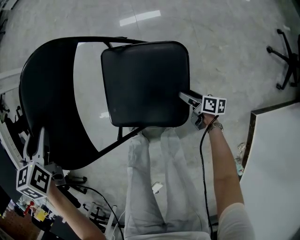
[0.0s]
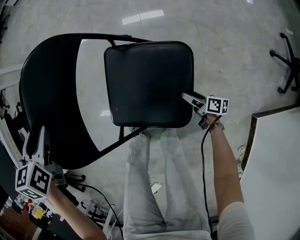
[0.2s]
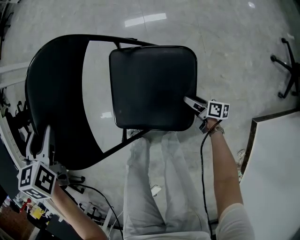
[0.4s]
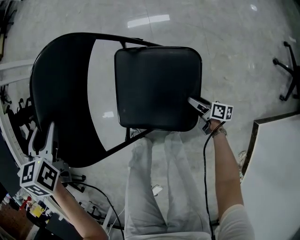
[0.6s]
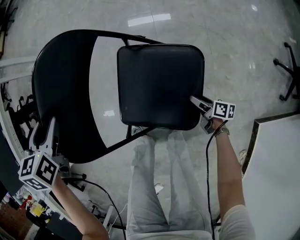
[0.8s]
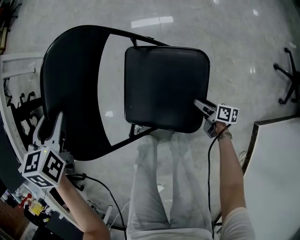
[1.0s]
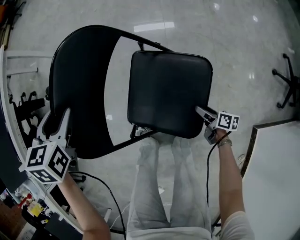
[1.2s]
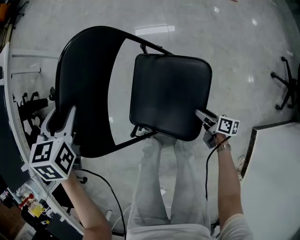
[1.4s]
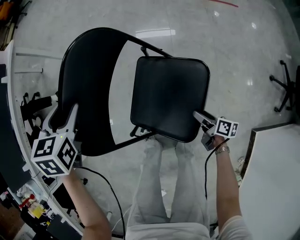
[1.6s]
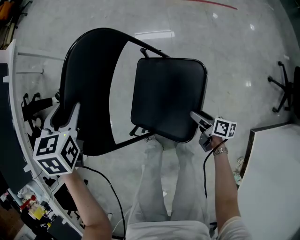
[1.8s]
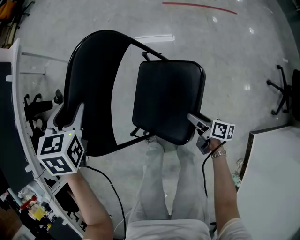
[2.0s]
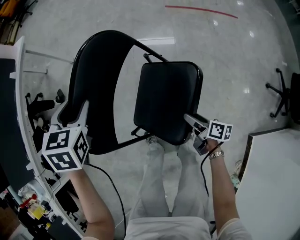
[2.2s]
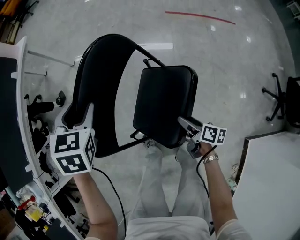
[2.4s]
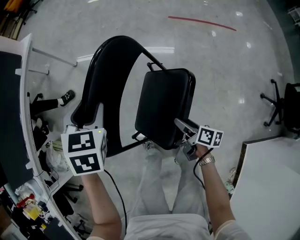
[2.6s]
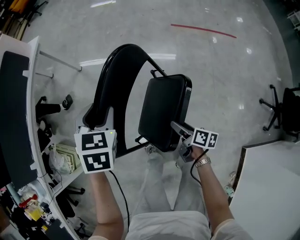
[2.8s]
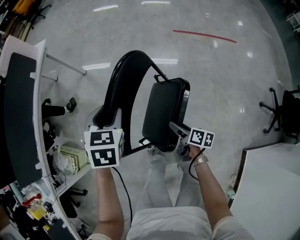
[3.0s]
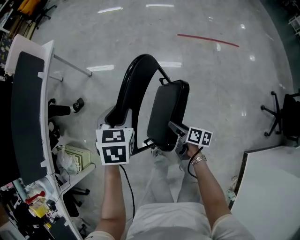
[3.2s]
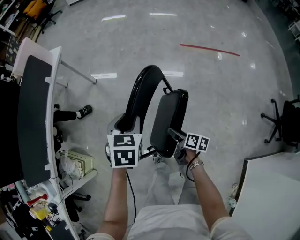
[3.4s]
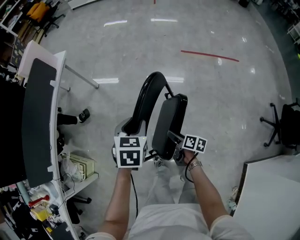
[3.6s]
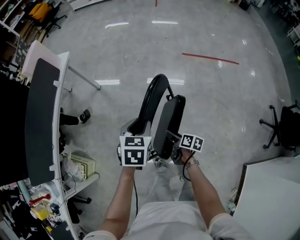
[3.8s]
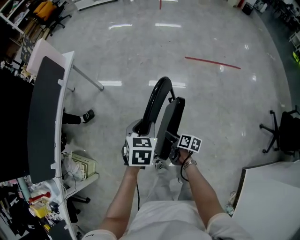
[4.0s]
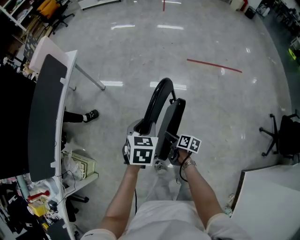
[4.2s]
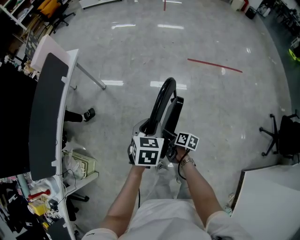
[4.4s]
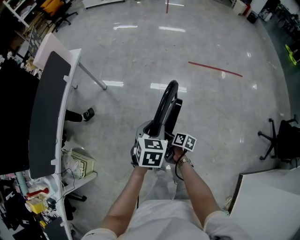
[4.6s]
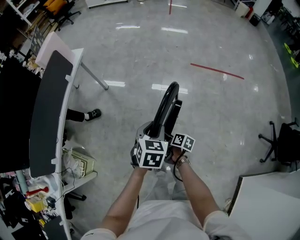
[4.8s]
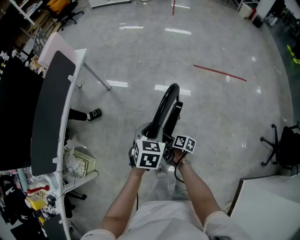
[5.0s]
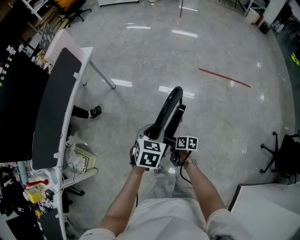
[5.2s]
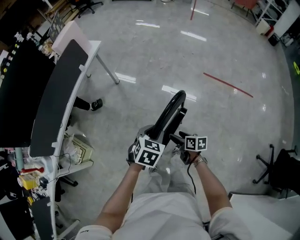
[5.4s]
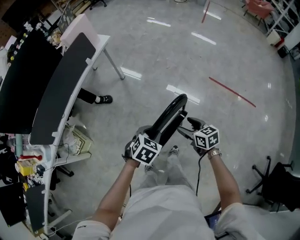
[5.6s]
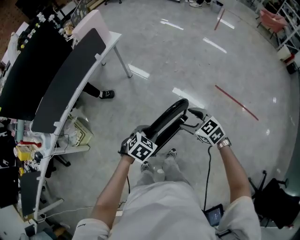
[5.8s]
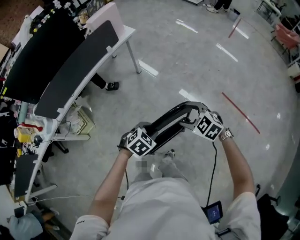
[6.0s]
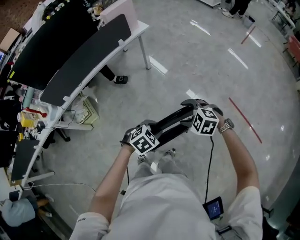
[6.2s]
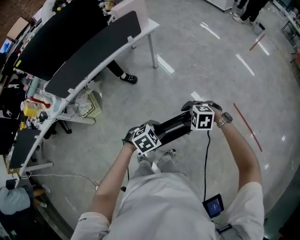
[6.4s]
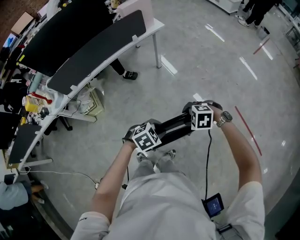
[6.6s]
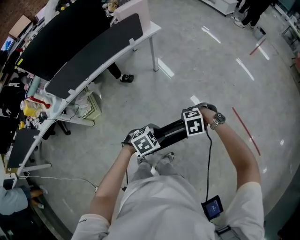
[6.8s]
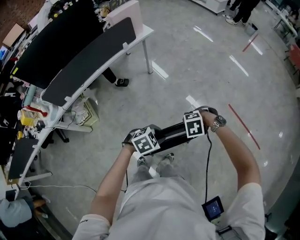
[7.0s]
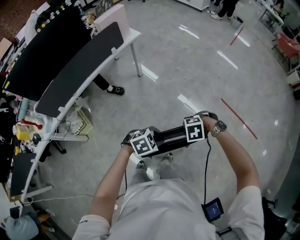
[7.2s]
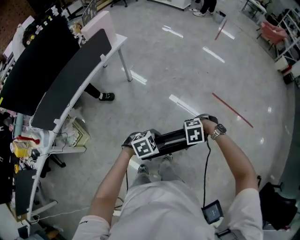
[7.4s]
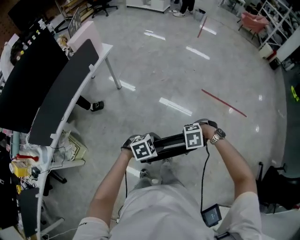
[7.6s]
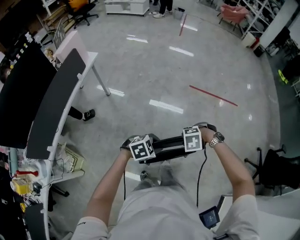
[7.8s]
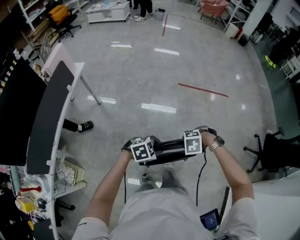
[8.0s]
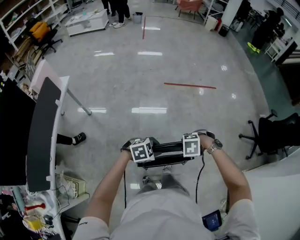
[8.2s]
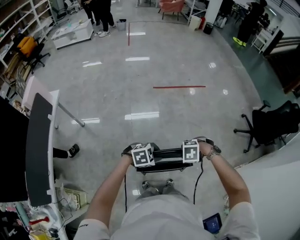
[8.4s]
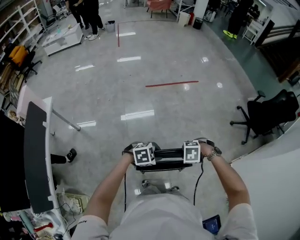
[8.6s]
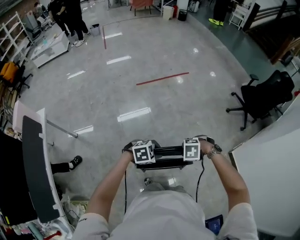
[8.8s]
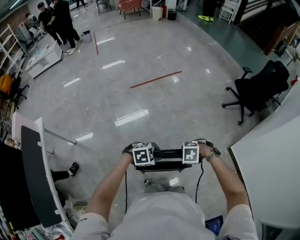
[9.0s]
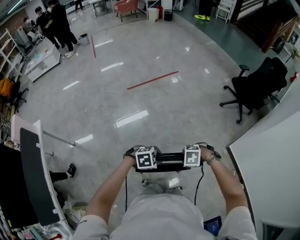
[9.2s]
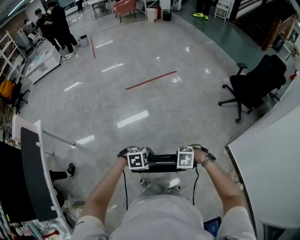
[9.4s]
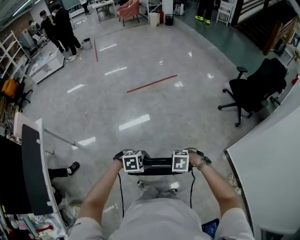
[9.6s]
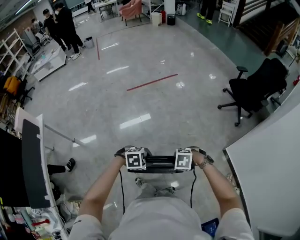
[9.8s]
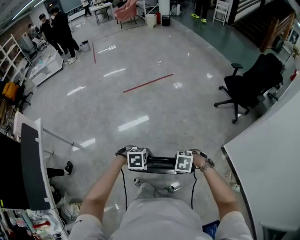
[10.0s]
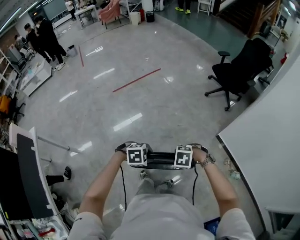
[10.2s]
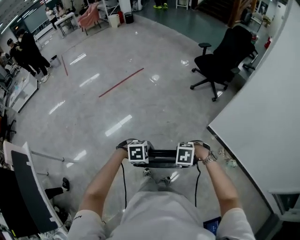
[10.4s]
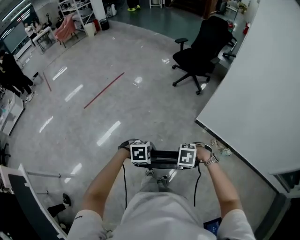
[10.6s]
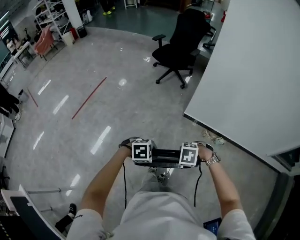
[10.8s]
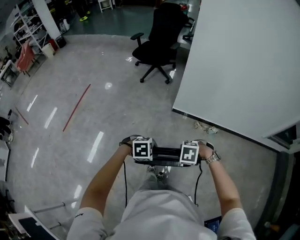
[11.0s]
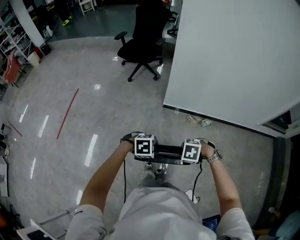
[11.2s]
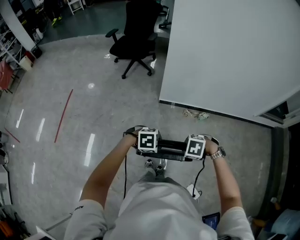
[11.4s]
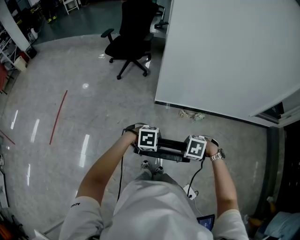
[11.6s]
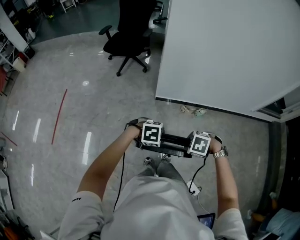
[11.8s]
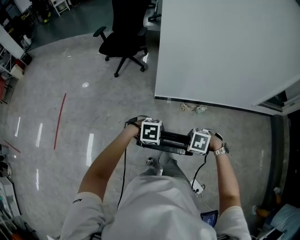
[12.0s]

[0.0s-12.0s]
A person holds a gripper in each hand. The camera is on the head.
0.0s to 1.6s: The right gripper travels upward, to the left and forward by approximately 20 cm, while the left gripper travels to the left, forward and upward by roughly 15 cm.
1.6s to 3.0s: The left gripper is displaced upward by some 10 cm; the right gripper heads to the left, upward and forward, covering about 25 cm.
3.0s to 4.4s: The left gripper moves roughly 5 cm. The right gripper moves to the left and forward, roughly 15 cm.
4.4s to 6.0s: The right gripper heads upward and forward, covering about 30 cm, and rotates around the line of its fingers by some 120 degrees, counterclockwise from behind.
6.0s to 7.6s: The left gripper moves roughly 10 cm, and swivels some 40 degrees. The right gripper changes place by about 15 cm, tips its fingers downward by about 30 degrees, and closes.
7.6s to 9.0s: The left gripper shifts by about 25 cm, and swivels some 60 degrees. The right gripper ends up about 35 cm from where it was, and rolls clockwise, seen from behind, by some 60 degrees.
9.0s to 10.4s: The right gripper changes place by about 30 cm, and swivels roughly 20 degrees, while the left gripper shifts by about 25 cm, and turns by about 20 degrees.
10.4s to 12.0s: The left gripper shifts by some 30 cm, and twists some 50 degrees clockwise, seen from behind, while the right gripper ends up roughly 25 cm from where it was, and twists some 50 degrees clockwise, seen from behind.

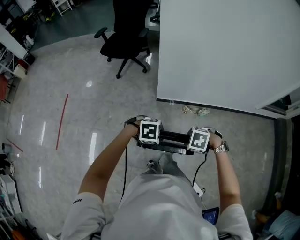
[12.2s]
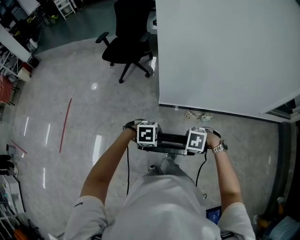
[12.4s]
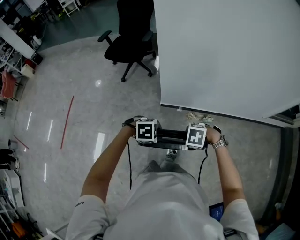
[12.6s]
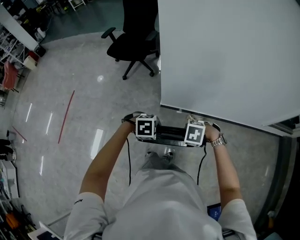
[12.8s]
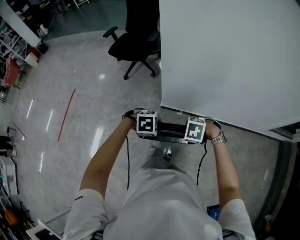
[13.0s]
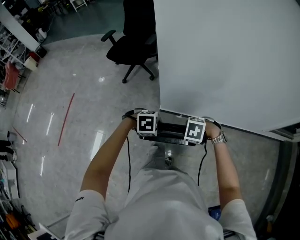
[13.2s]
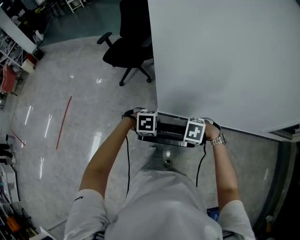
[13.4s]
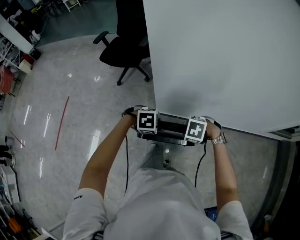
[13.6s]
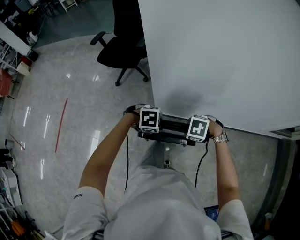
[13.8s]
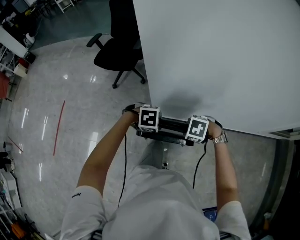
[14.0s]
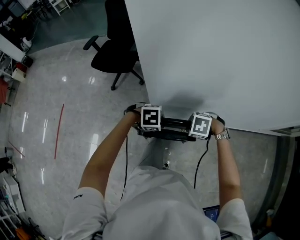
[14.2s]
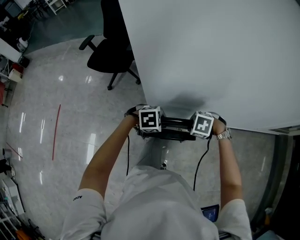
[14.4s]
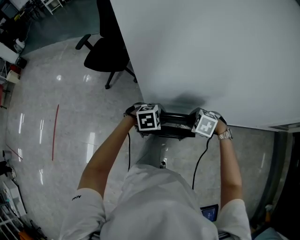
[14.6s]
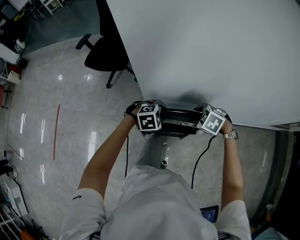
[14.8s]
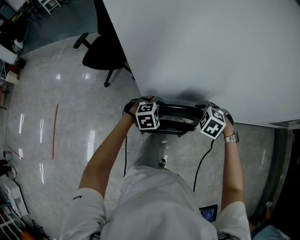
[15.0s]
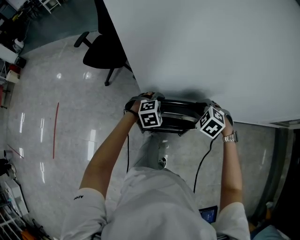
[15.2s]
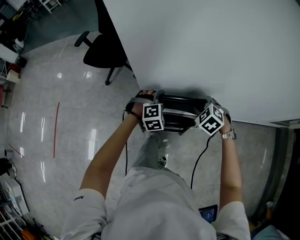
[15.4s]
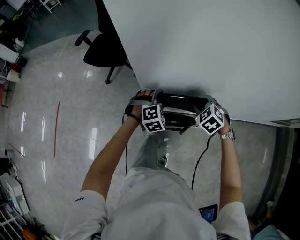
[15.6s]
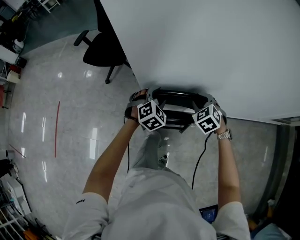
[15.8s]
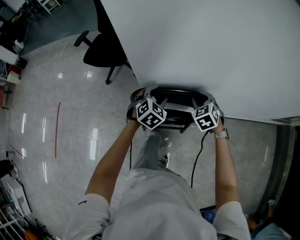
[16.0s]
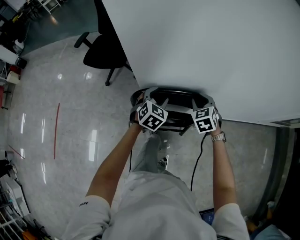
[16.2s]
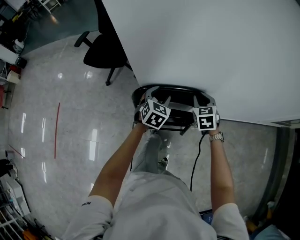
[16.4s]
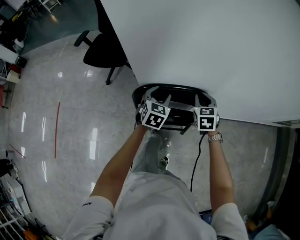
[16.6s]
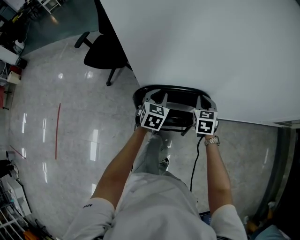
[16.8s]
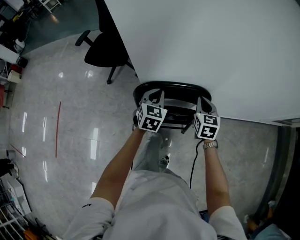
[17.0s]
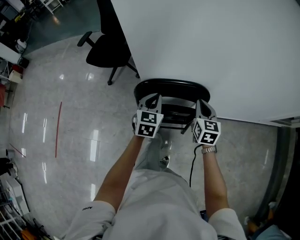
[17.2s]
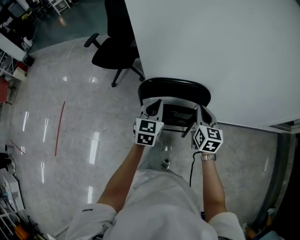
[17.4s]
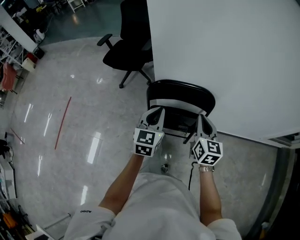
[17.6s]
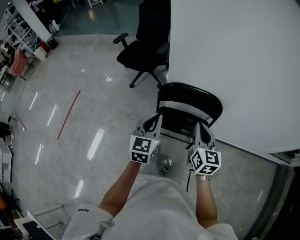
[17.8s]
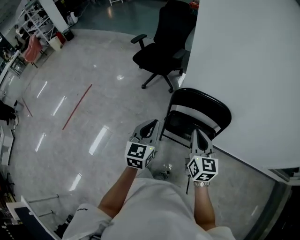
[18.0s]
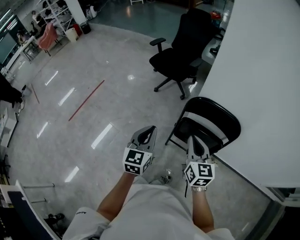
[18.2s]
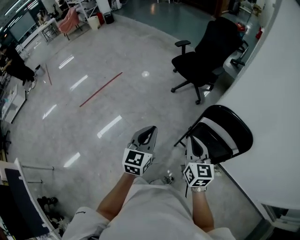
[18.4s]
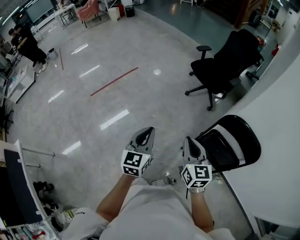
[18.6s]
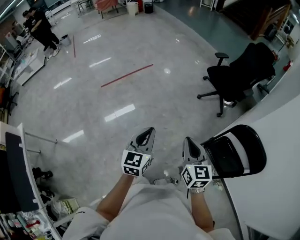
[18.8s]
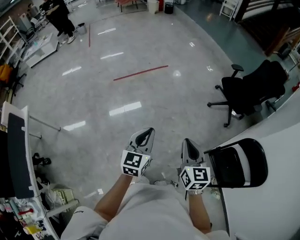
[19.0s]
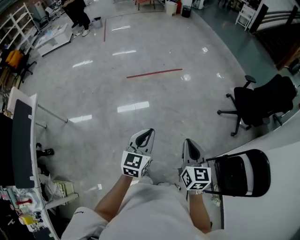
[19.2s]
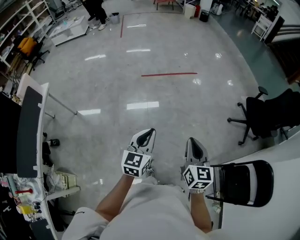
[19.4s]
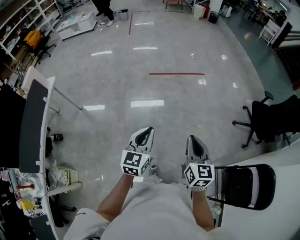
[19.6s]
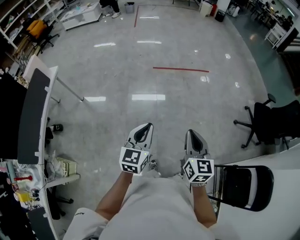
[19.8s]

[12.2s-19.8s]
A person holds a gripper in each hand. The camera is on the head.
12.2s to 13.8s: The right gripper ends up roughly 30 cm from where it was. Meanwhile the left gripper moves approximately 30 cm.
13.8s to 15.2s: The right gripper changes place by some 15 cm, and changes its angle by approximately 30 degrees, while the left gripper ends up approximately 15 cm from where it was, changes its angle by approximately 30 degrees, and opens its fingers.
15.2s to 16.8s: The two grippers go some 5 cm forward. The left gripper rolls counterclockwise, seen from behind, by about 50 degrees; the right gripper twists some 50 degrees clockwise, seen from behind.
16.8s to 18.2s: The left gripper ends up some 40 cm from where it was, and swivels approximately 40 degrees, while the right gripper ends up roughly 40 cm from where it was, and changes its angle by about 40 degrees.
18.2s to 19.8s: The two grippers travel together, approximately 70 cm. The left gripper swivels approximately 50 degrees. Meanwhile the right gripper swivels about 50 degrees.

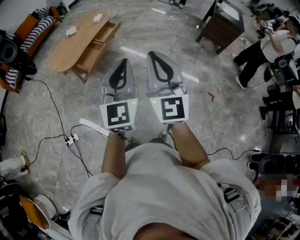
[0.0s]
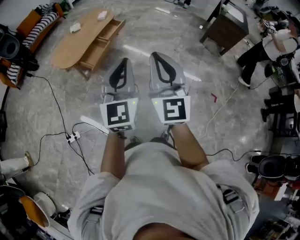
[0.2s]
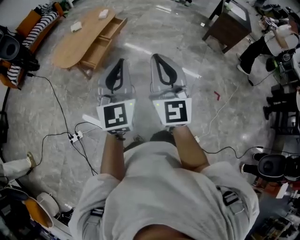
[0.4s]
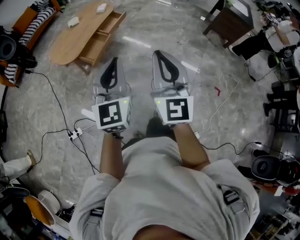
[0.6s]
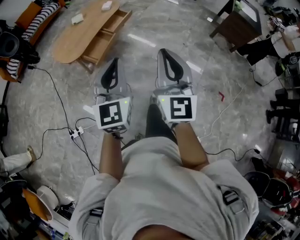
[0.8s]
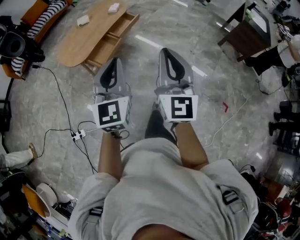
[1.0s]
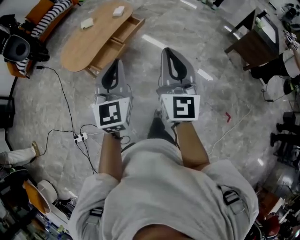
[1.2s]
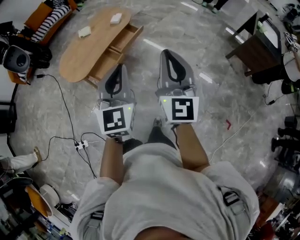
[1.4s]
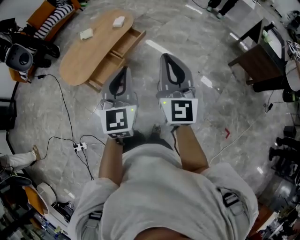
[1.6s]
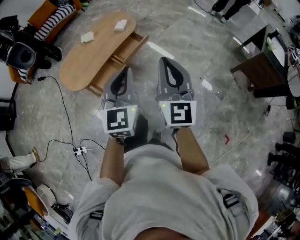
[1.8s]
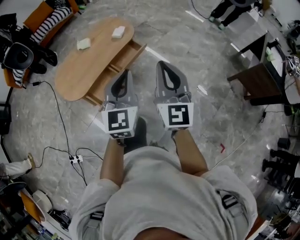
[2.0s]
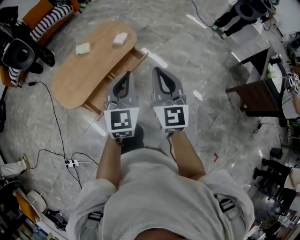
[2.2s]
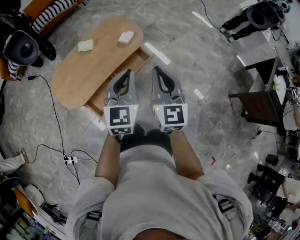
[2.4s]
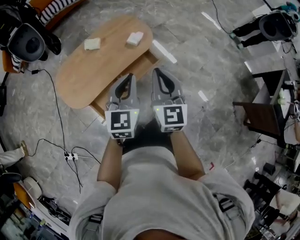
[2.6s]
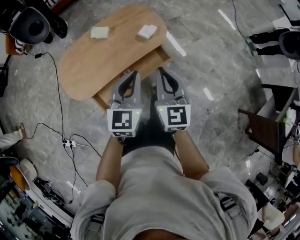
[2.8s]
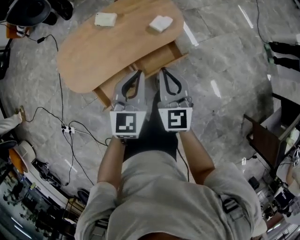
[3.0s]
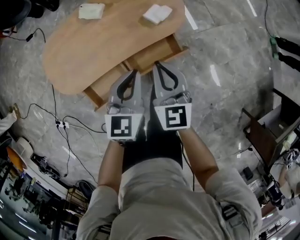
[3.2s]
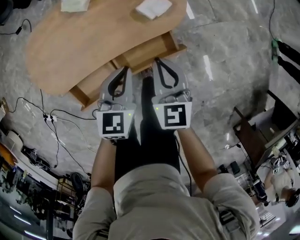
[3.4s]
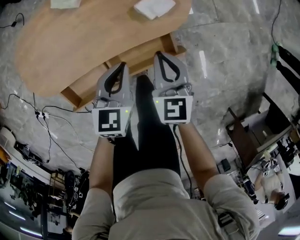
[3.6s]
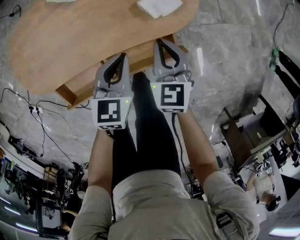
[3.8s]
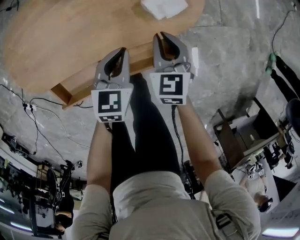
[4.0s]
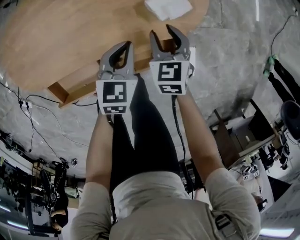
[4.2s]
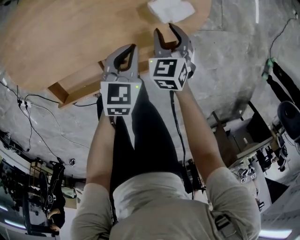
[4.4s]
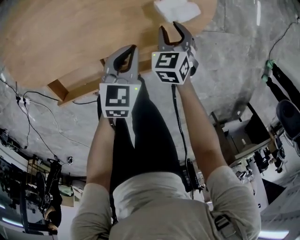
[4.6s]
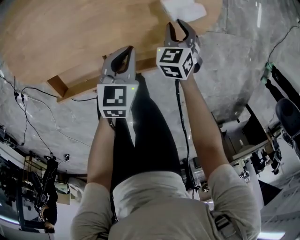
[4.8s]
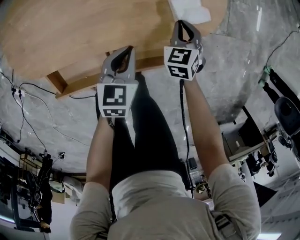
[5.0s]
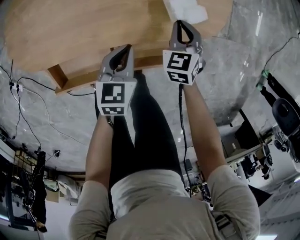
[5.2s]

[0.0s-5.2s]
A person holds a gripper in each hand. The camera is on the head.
0.0s to 1.8s: Both grippers are carried forward, approximately 50 cm.
1.8s to 3.4s: The two grippers travel together, forward, about 60 cm. Both grippers move downward, approximately 40 cm. The left gripper turns by about 40 degrees; the right gripper points its fingers roughly 40 degrees further downward.
3.4s to 5.2s: The left gripper heads downward, covering roughly 15 cm; the right gripper travels downward and forward by roughly 25 cm, rotates approximately 30 degrees, and opens, then closes again.
